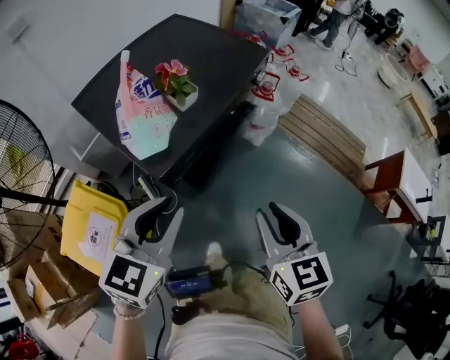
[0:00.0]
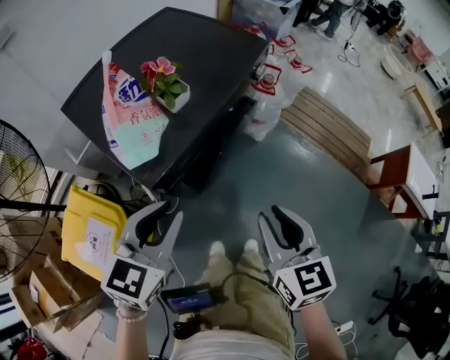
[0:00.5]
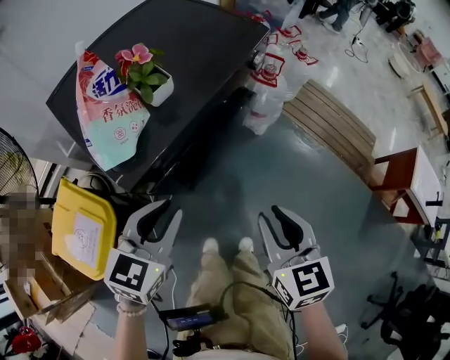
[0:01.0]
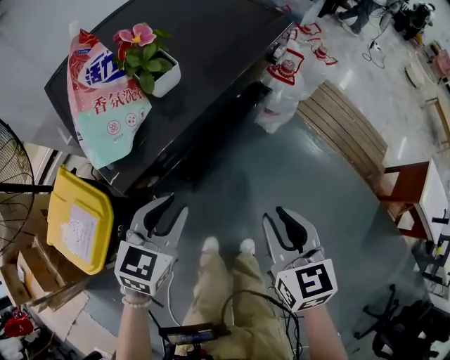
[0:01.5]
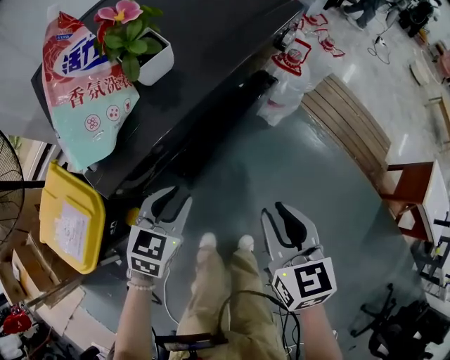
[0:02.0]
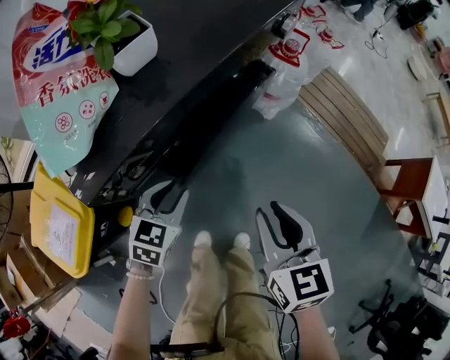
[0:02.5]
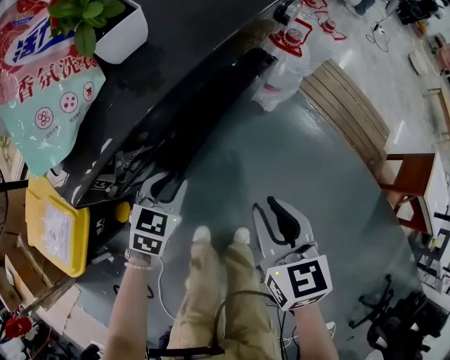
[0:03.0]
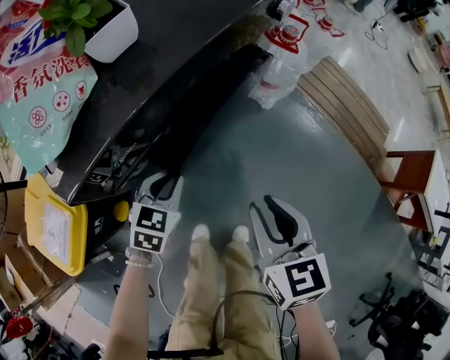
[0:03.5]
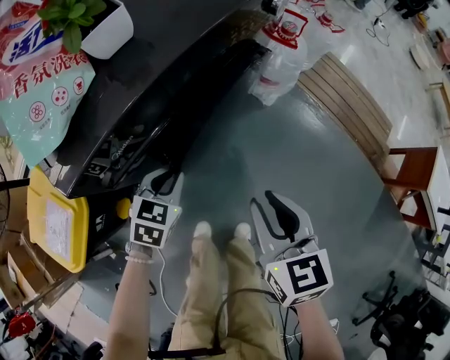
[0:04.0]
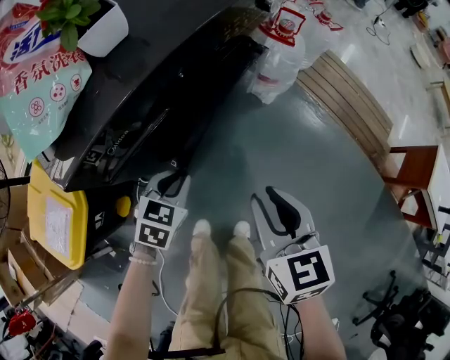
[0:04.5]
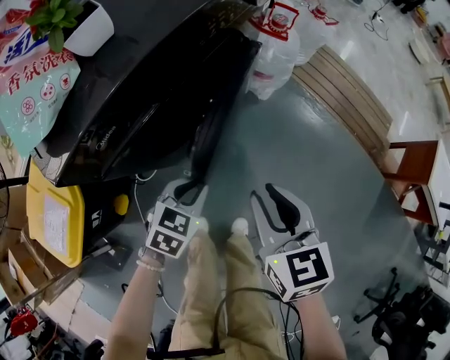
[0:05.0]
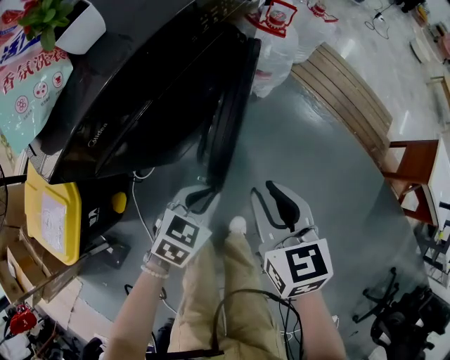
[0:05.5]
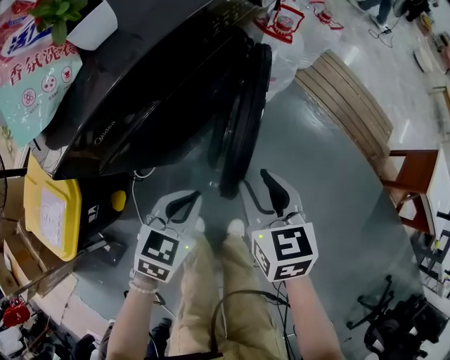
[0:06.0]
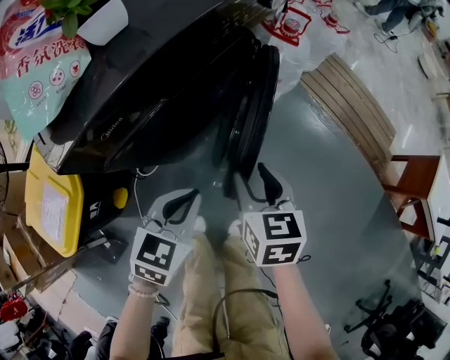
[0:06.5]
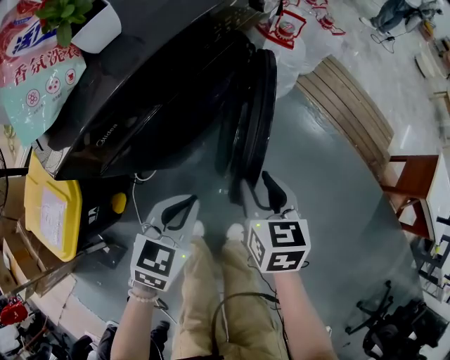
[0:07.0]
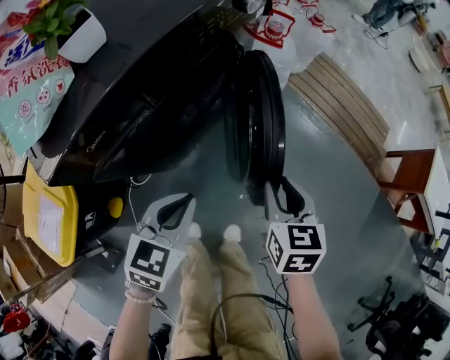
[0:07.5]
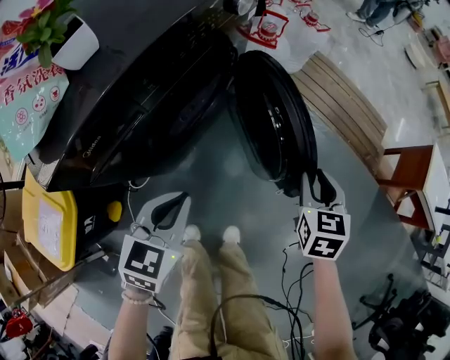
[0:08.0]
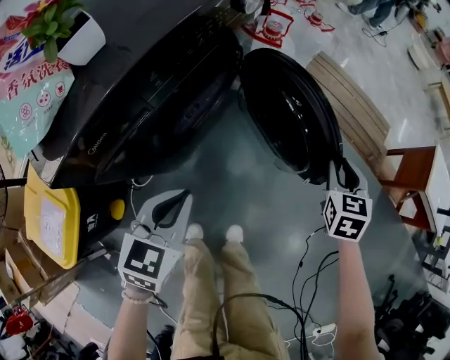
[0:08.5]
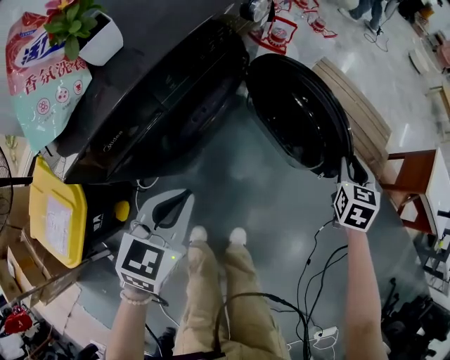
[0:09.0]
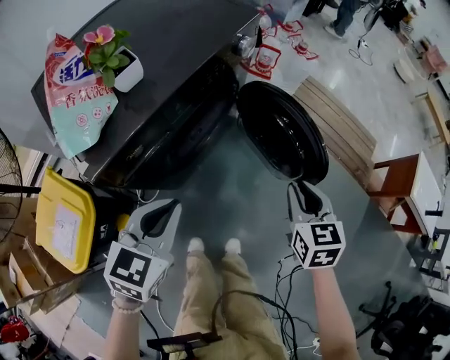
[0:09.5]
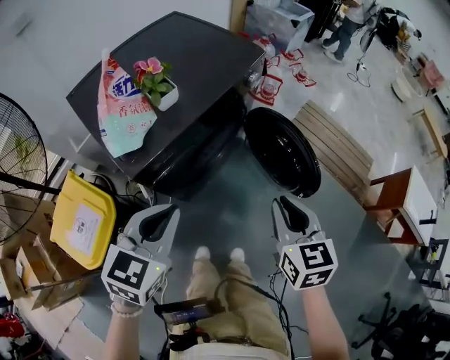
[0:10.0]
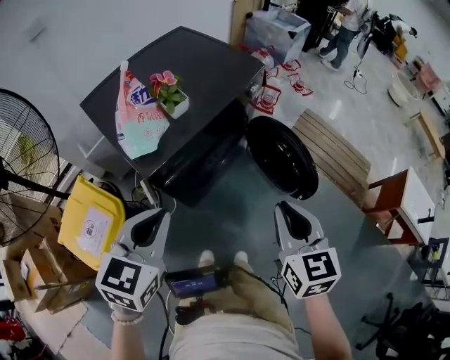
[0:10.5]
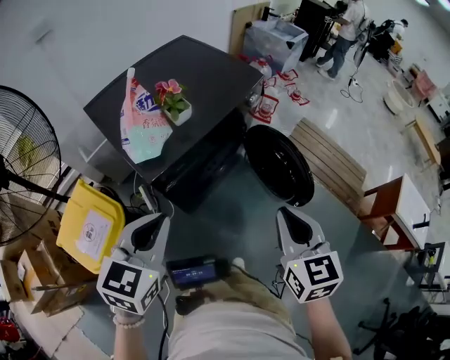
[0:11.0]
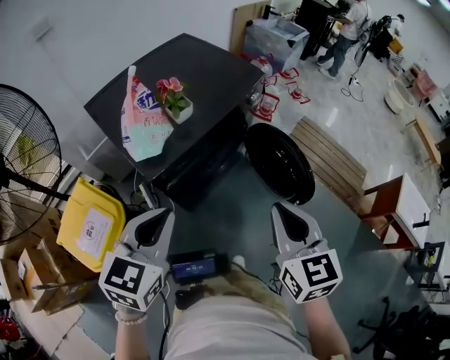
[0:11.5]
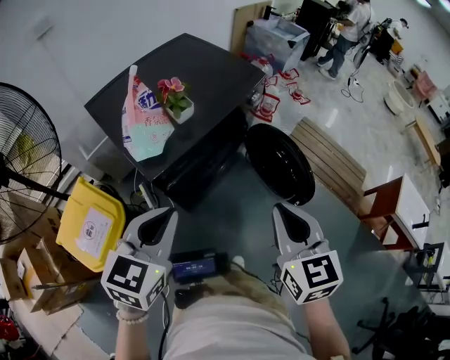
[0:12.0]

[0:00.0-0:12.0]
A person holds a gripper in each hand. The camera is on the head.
0:00.0 to 0:02.0: The left gripper shifts approximately 30 cm downward. The right gripper goes some 20 cm downward and forward.
0:02.0 to 0:04.0: The right gripper goes roughly 5 cm downward. Meanwhile the left gripper travels downward by some 10 cm.
0:04.0 to 0:06.0: The left gripper shifts roughly 15 cm to the right, backward and upward.
0:06.0 to 0:08.0: The right gripper goes some 20 cm to the right, and turns by roughly 30 degrees.
0:08.0 to 0:10.0: The right gripper is displaced upward, to the left and backward by approximately 30 cm, and swivels approximately 20 degrees; the left gripper shifts some 25 cm upward.
0:10.0 to 0:12.0: The two grippers go approximately 10 cm upward.

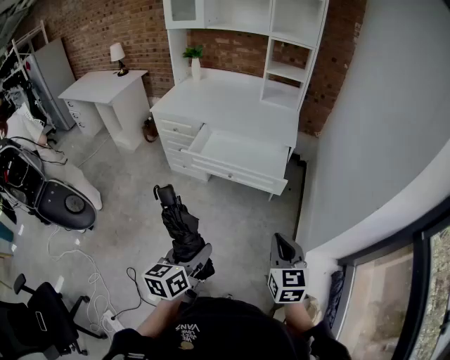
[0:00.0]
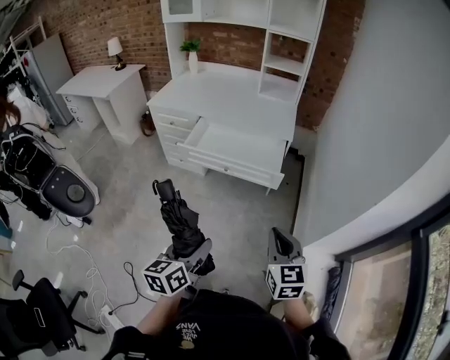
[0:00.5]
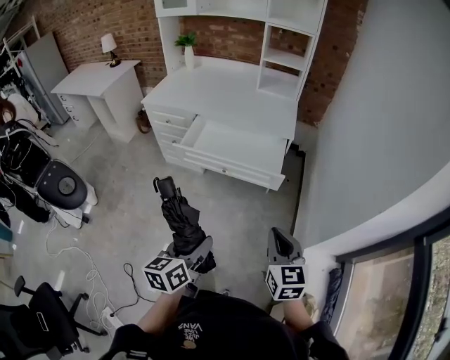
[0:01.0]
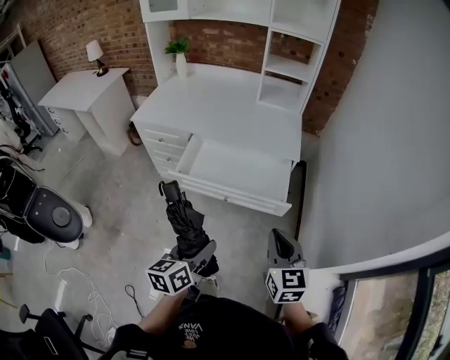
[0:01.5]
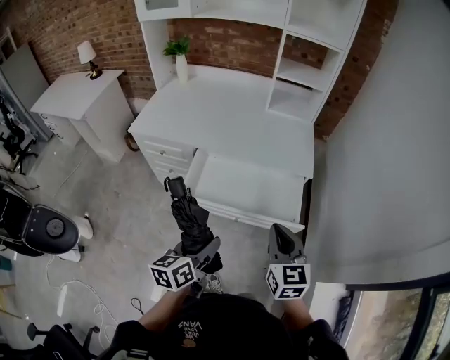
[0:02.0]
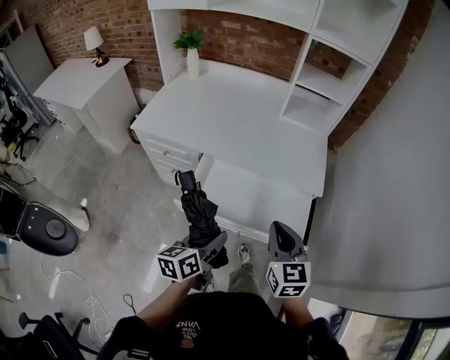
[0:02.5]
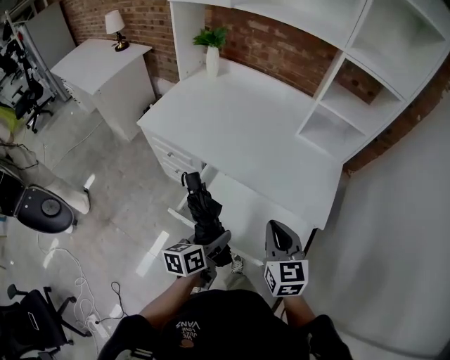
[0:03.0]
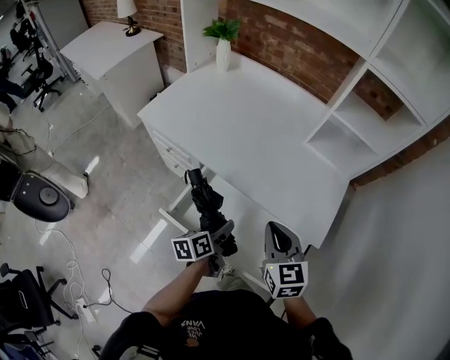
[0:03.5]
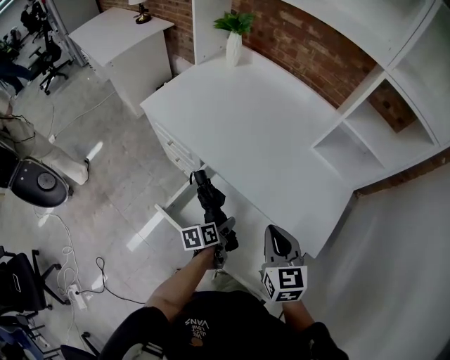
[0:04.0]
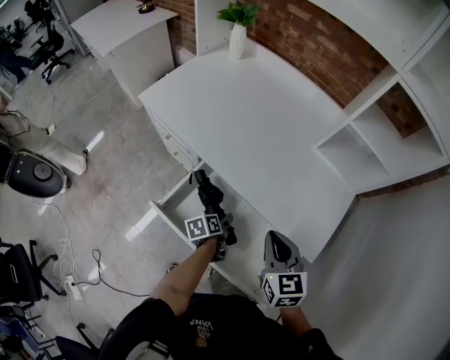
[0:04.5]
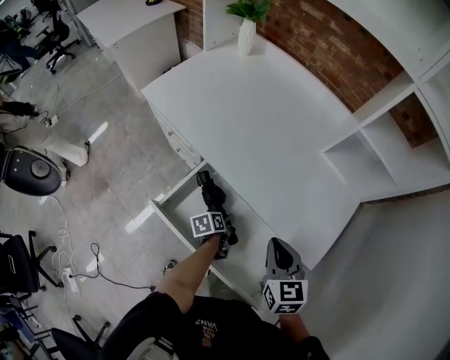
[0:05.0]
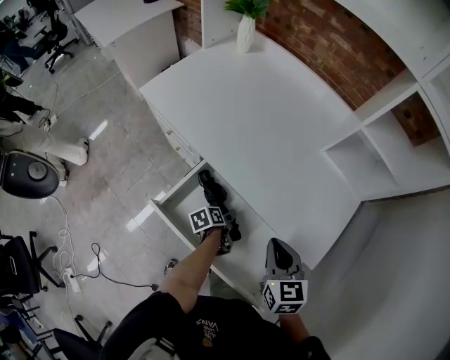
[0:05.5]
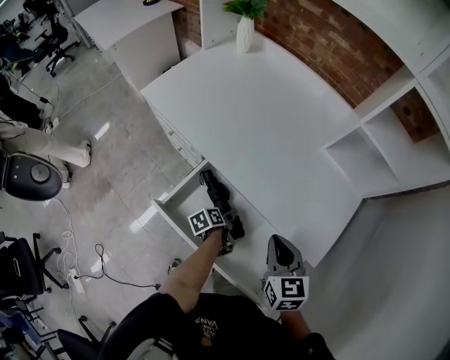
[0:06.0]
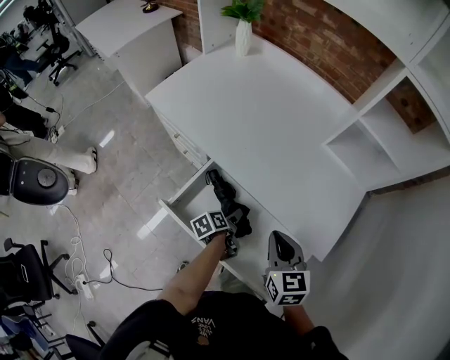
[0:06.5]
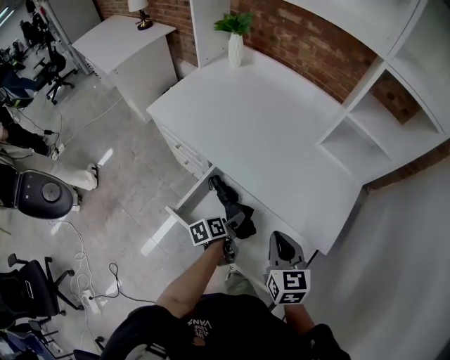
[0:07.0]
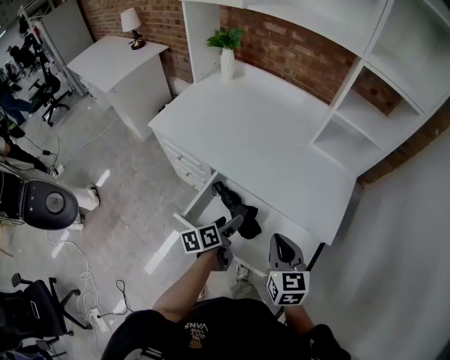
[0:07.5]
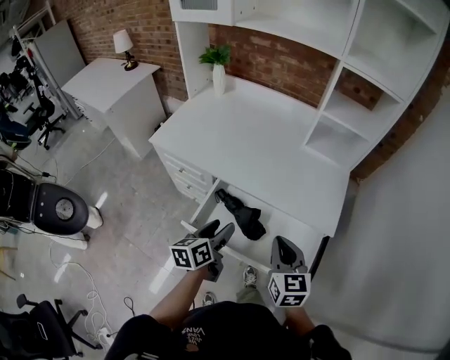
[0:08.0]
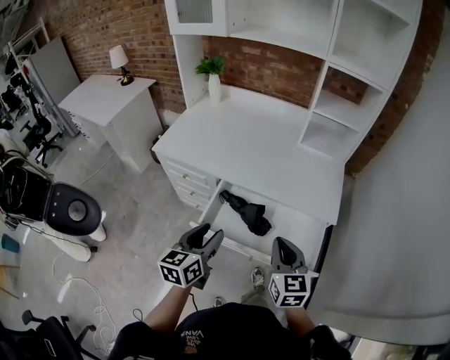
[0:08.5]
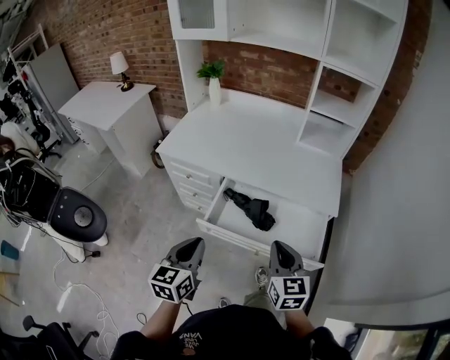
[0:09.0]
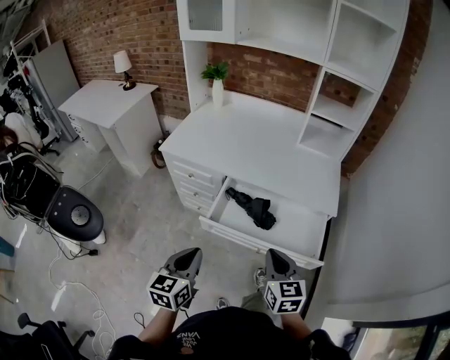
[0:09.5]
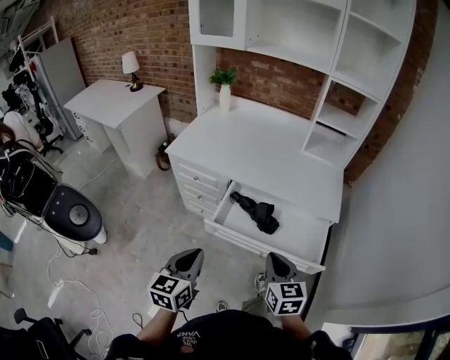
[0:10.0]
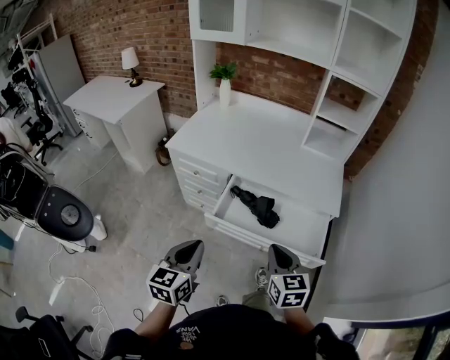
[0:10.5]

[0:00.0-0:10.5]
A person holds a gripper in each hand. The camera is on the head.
0:00.0 to 0:02.0: Both grippers move forward, approximately 35 cm.
0:02.0 to 0:04.0: The right gripper moves forward, roughly 30 cm, and swivels roughly 30 degrees. The left gripper is displaced forward and downward by roughly 40 cm, and turns by some 40 degrees.
0:04.0 to 0:06.5: The left gripper travels downward by roughly 5 cm.
0:06.5 to 0:08.5: The left gripper heads upward and backward, covering roughly 35 cm, twists about 60 degrees clockwise, seen from behind, and closes; the right gripper is displaced backward and upward by approximately 20 cm, and swivels roughly 20 degrees.
0:08.5 to 0:10.5: Both grippers travel together backward and to the left, some 15 cm. The left gripper closes its fingers.

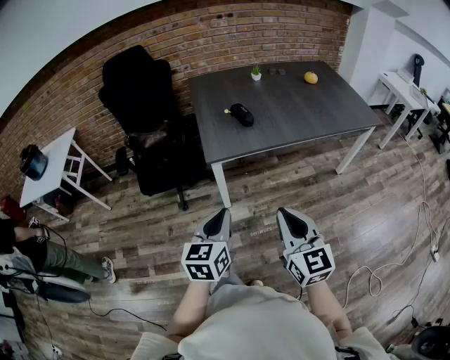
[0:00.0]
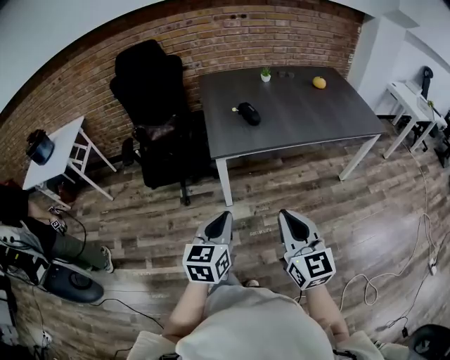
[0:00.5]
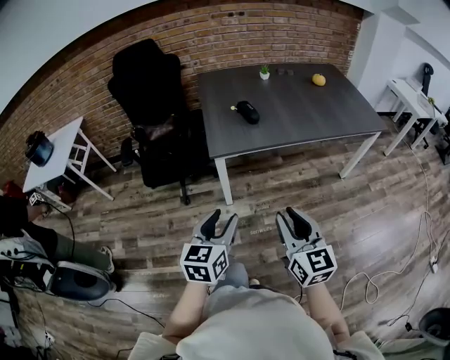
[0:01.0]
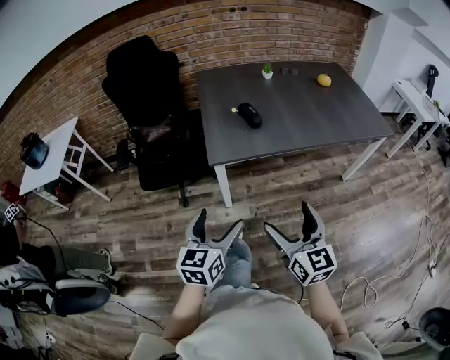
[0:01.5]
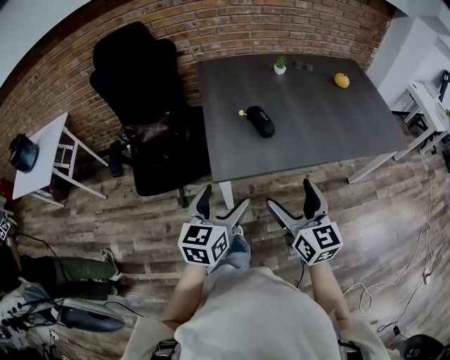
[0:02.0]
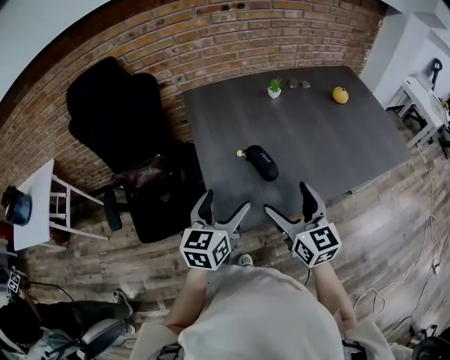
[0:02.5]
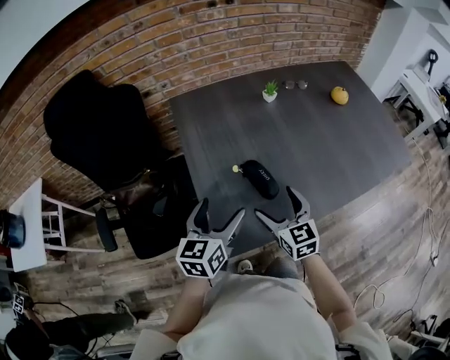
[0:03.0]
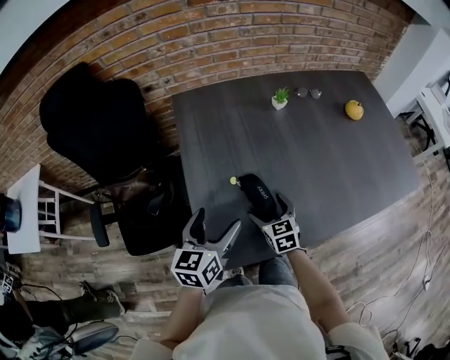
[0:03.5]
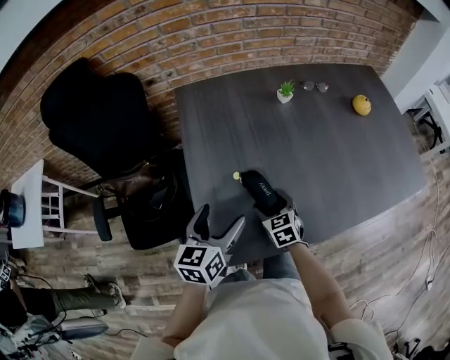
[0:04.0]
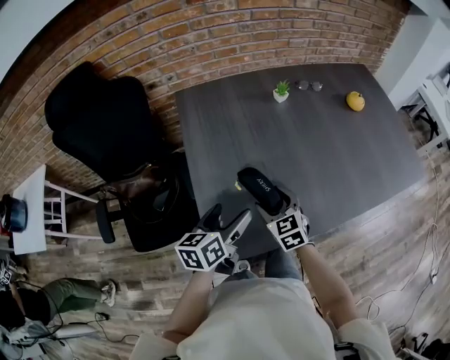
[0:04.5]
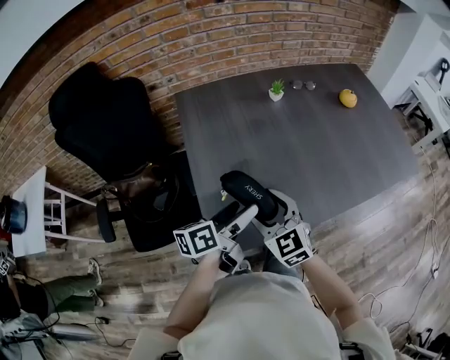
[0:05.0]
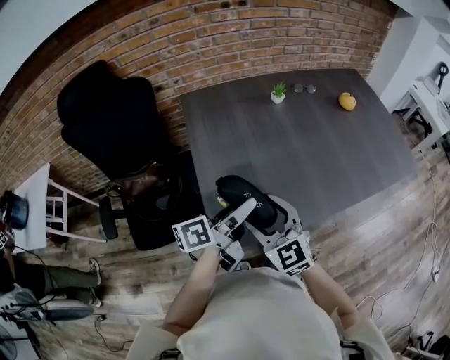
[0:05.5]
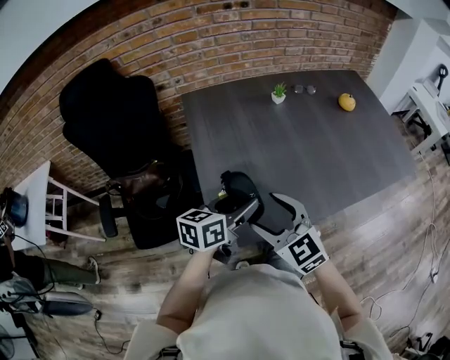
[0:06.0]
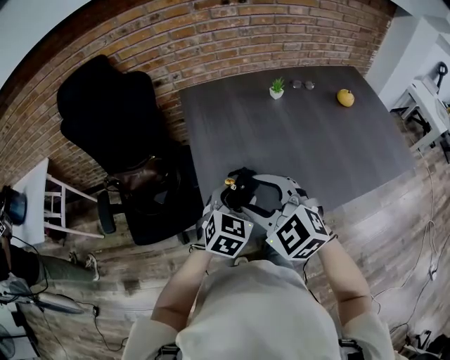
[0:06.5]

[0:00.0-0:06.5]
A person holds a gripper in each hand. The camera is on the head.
0:00.0 to 0:02.0: The two grippers go about 25 cm forward. The left gripper opens up; the right gripper opens up.
0:02.0 to 0:04.5: The right gripper goes about 35 cm forward and downward, and turns by approximately 30 degrees, while the left gripper goes approximately 30 cm forward, and changes its angle by approximately 30 degrees.
0:04.5 to 0:06.5: The right gripper is displaced upward and backward by about 20 cm, and swivels some 30 degrees. Meanwhile the left gripper rotates around the line of its fingers by some 50 degrees, clockwise from behind, and closes up.
